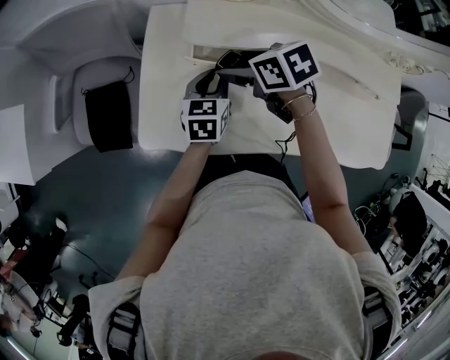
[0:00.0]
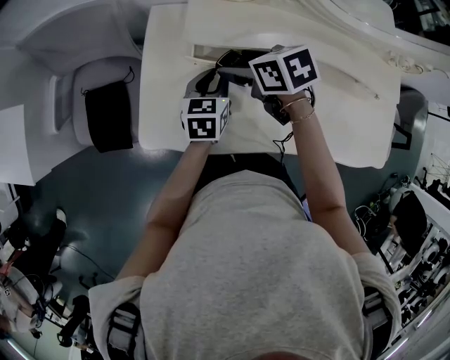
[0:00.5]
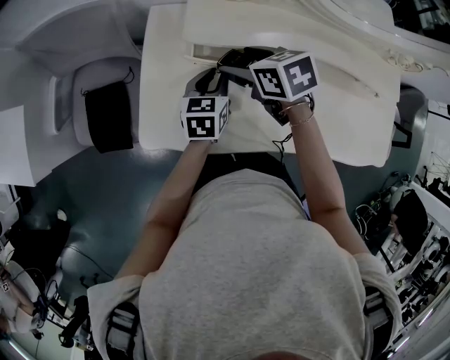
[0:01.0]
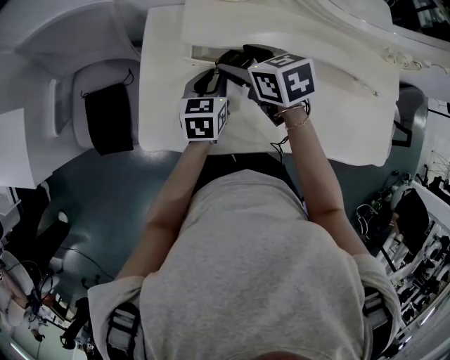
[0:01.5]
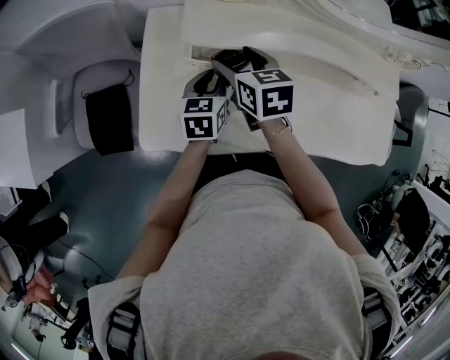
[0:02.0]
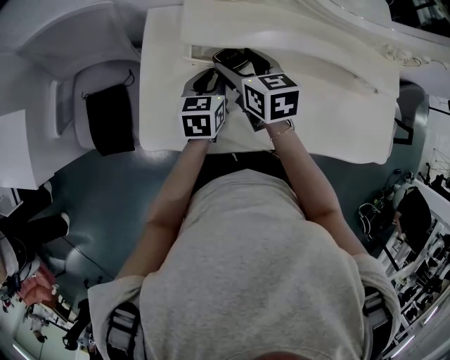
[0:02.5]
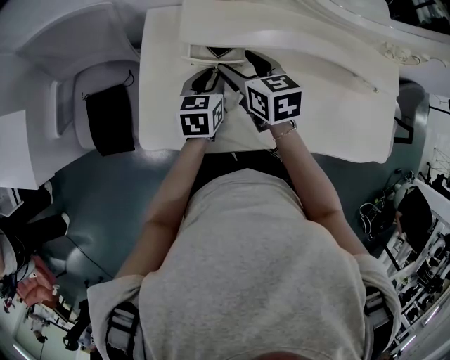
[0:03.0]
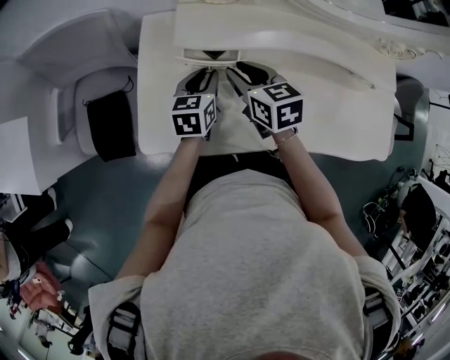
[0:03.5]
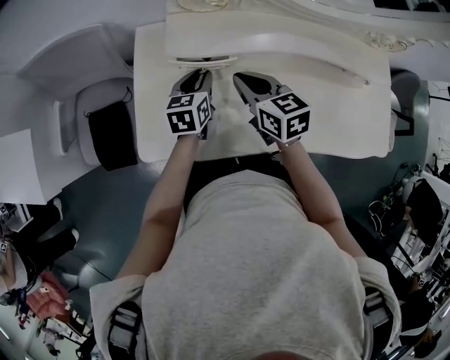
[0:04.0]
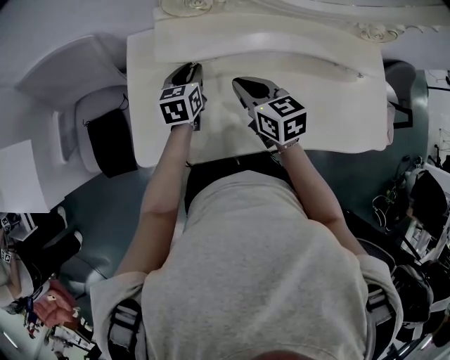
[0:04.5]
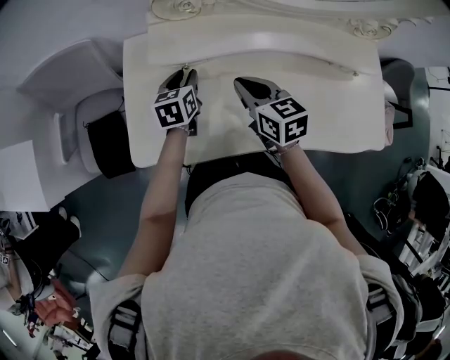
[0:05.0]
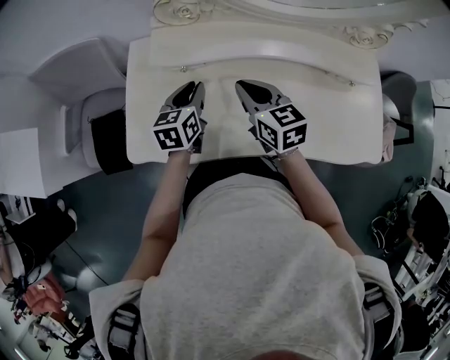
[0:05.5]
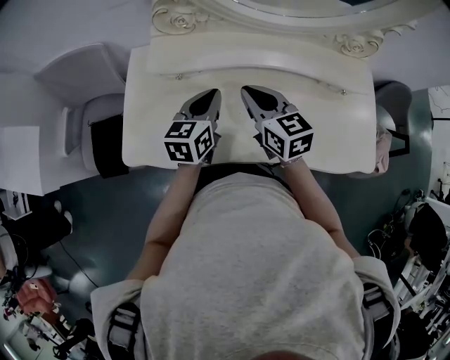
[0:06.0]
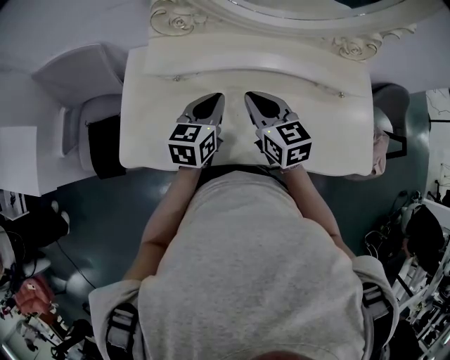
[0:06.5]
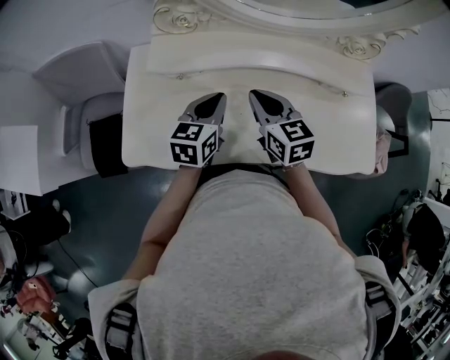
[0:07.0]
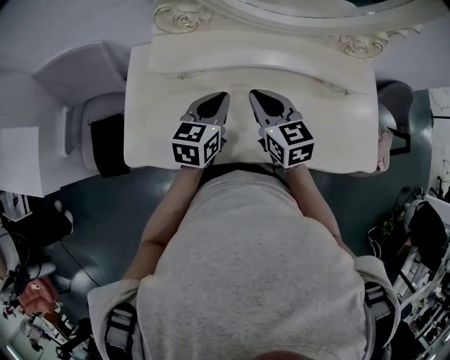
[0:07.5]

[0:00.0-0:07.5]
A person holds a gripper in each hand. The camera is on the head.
0:00.0 to 0:02.0: The right gripper rotates about 30 degrees.
0:02.0 to 0:04.0: The right gripper heads to the right and backward, covering some 5 cm, and closes.
0:04.0 to 0:05.5: The right gripper goes some 5 cm to the right. Meanwhile the left gripper is displaced upward by about 5 cm.
0:05.5 to 0:07.5: The left gripper travels to the right by approximately 10 cm.

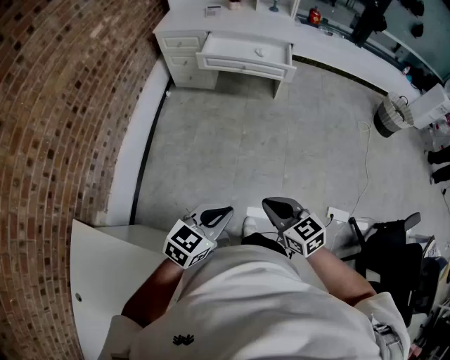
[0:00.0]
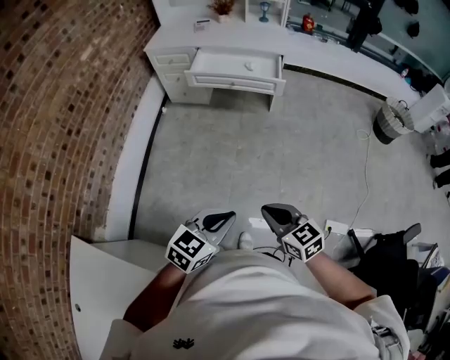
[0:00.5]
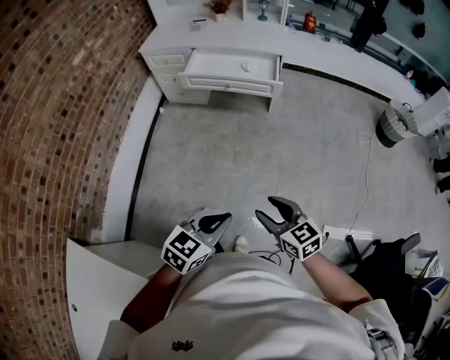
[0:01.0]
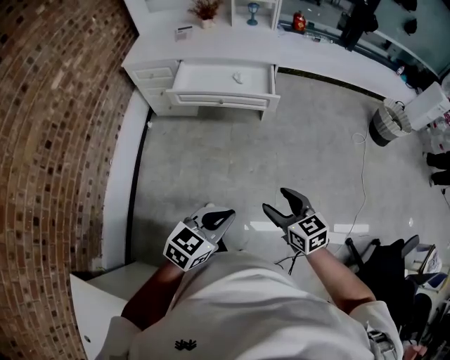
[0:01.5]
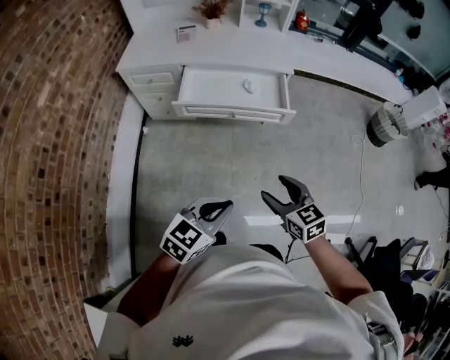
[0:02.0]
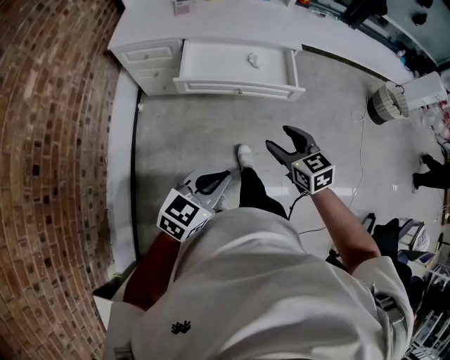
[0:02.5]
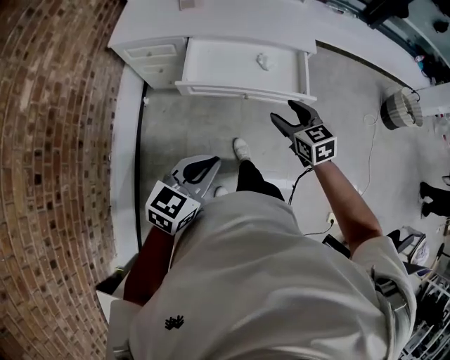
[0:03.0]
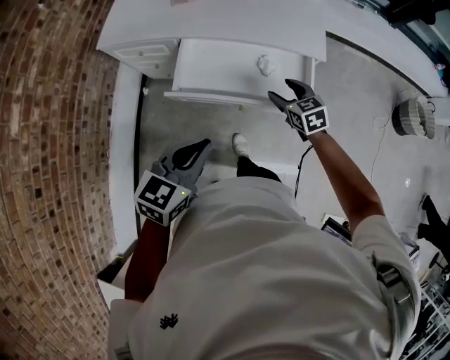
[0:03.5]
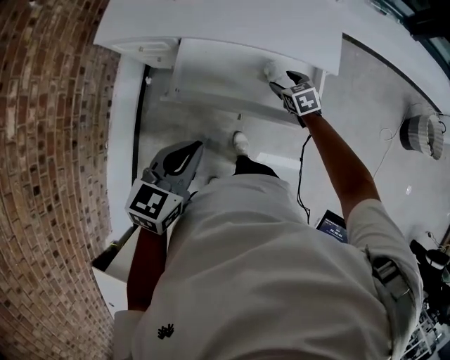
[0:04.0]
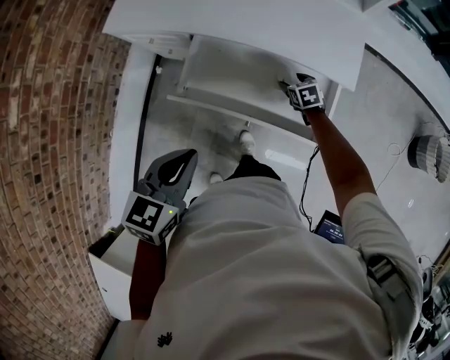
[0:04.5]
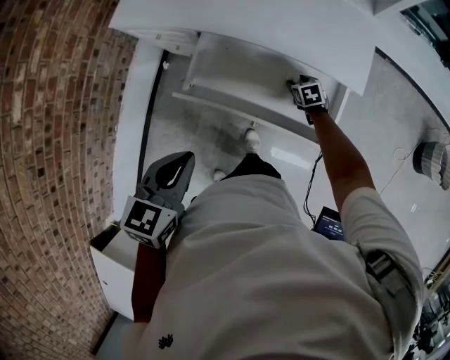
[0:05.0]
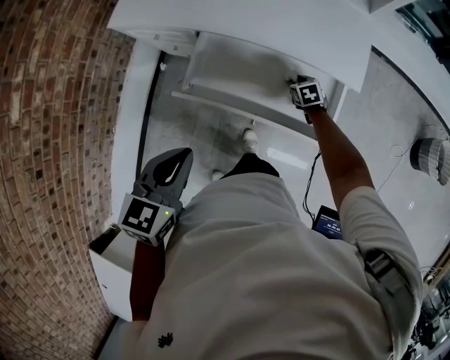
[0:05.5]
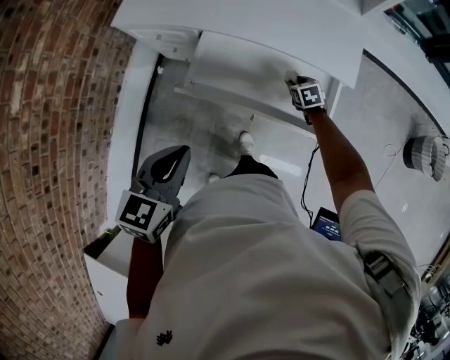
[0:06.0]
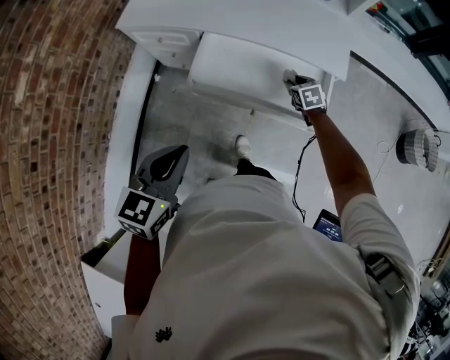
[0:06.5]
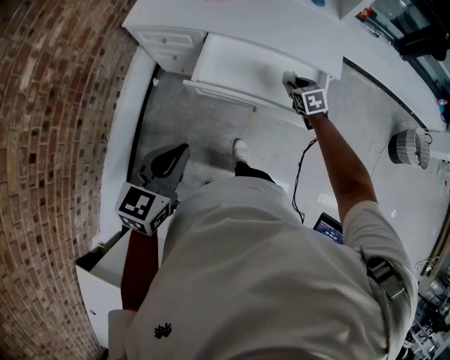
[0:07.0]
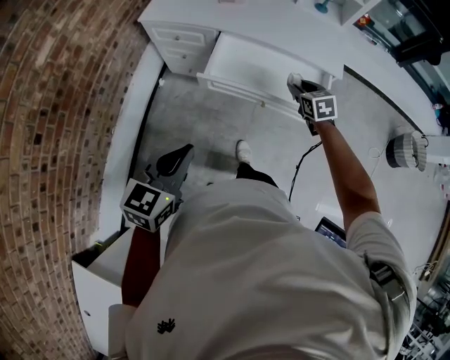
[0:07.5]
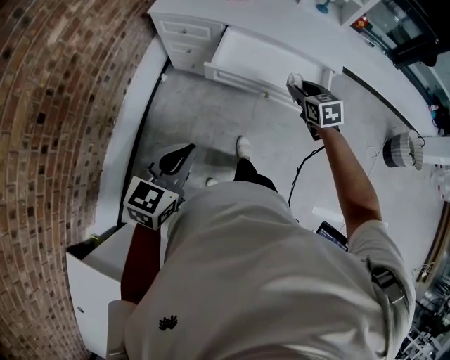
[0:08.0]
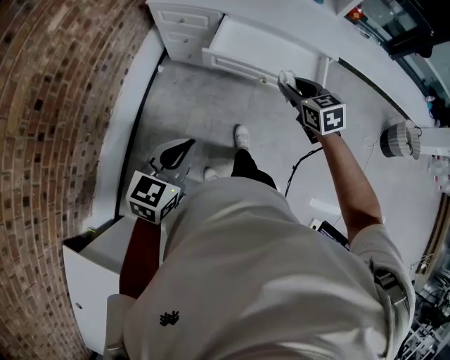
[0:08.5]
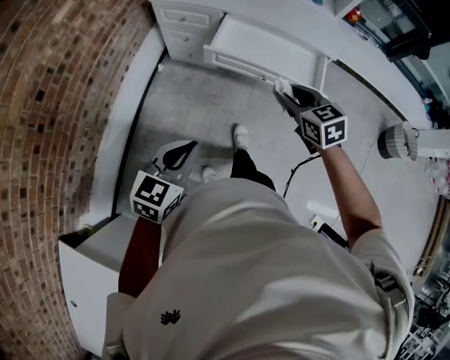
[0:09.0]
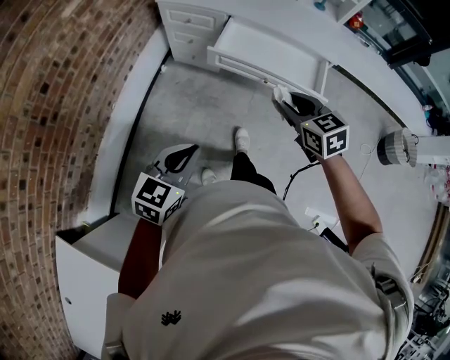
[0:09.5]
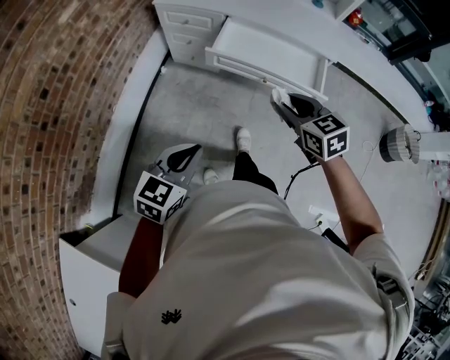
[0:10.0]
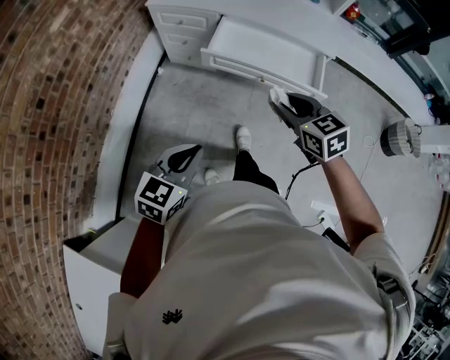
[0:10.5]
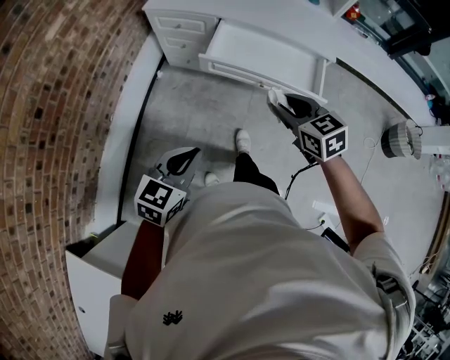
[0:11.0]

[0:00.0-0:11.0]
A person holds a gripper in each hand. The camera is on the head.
0:00.0 to 0:02.0: The two grippers go about 40 cm forward. The right gripper opens up.
0:02.0 to 0:03.5: Both grippers move forward, roughly 40 cm.
0:03.5 to 0:05.5: The right gripper goes roughly 25 cm downward and forward, turns by some 20 degrees, and closes up, while the left gripper goes about 5 cm forward.
0:05.5 to 0:07.5: The right gripper is displaced upward and backward by approximately 30 cm. The left gripper heads backward and to the left, covering approximately 20 cm.
0:07.5 to 0:09.0: The right gripper goes some 25 cm backward, upward and to the left; the left gripper heads backward, covering approximately 15 cm.
0:09.0 to 0:11.0: The grippers move only a little.

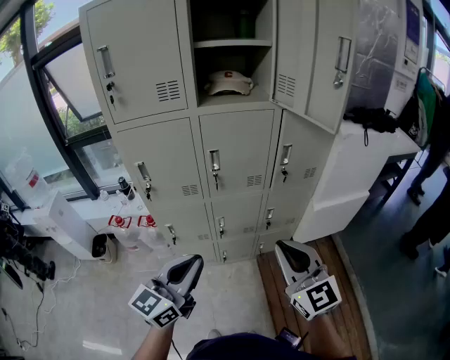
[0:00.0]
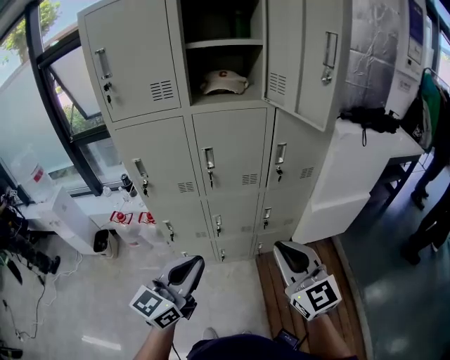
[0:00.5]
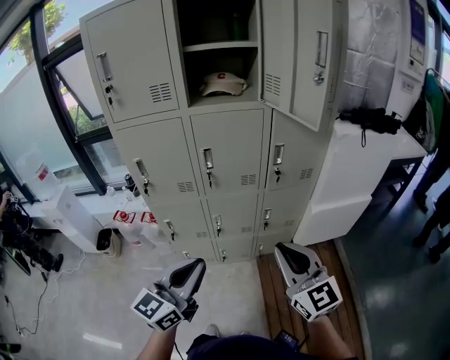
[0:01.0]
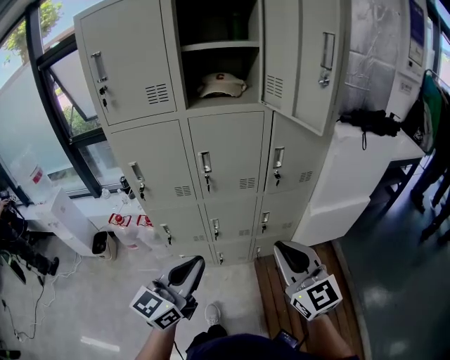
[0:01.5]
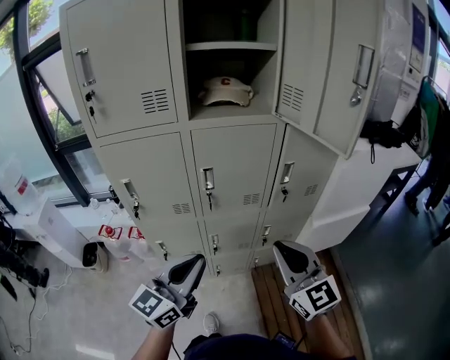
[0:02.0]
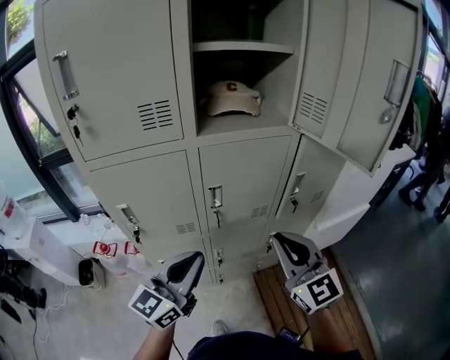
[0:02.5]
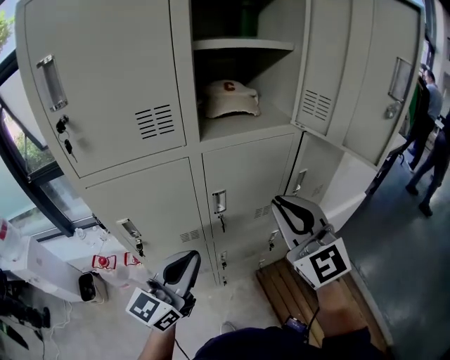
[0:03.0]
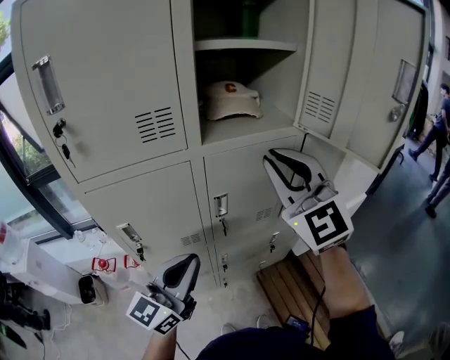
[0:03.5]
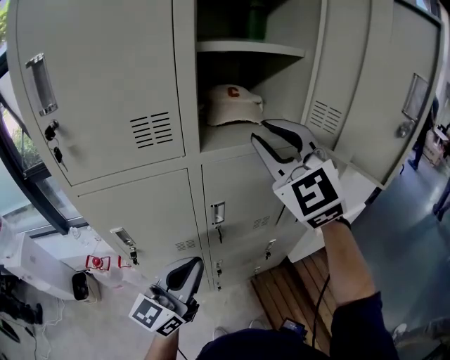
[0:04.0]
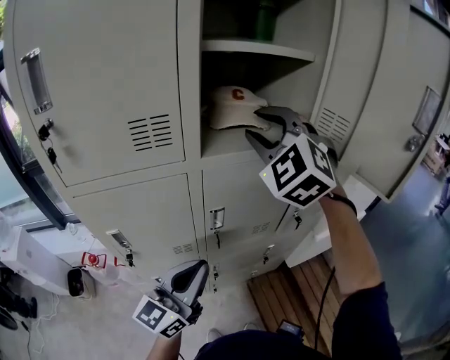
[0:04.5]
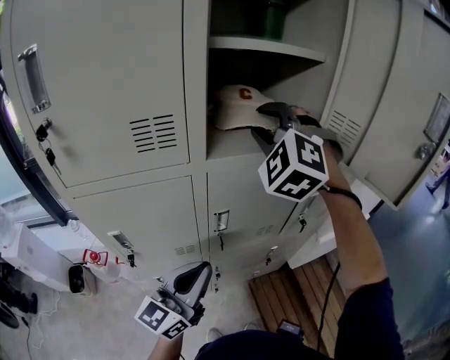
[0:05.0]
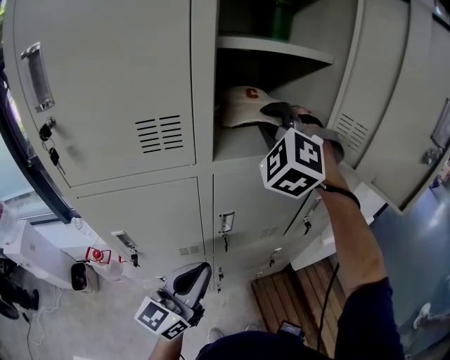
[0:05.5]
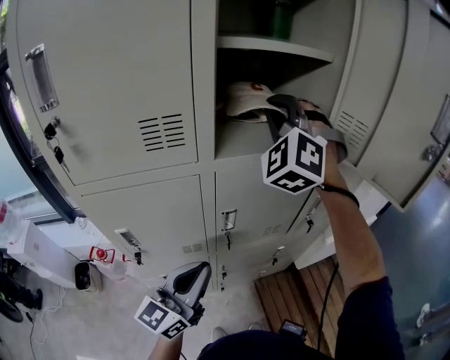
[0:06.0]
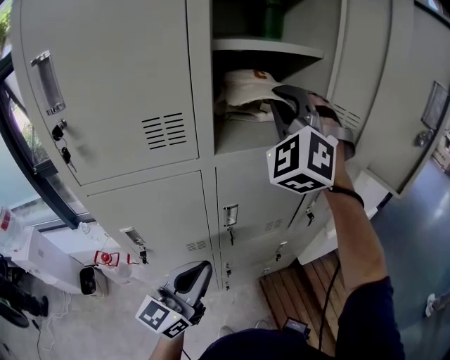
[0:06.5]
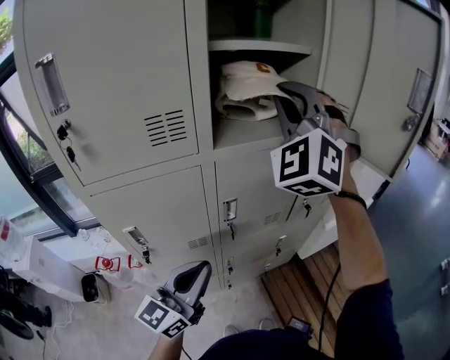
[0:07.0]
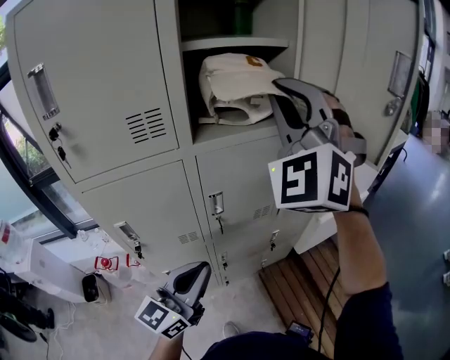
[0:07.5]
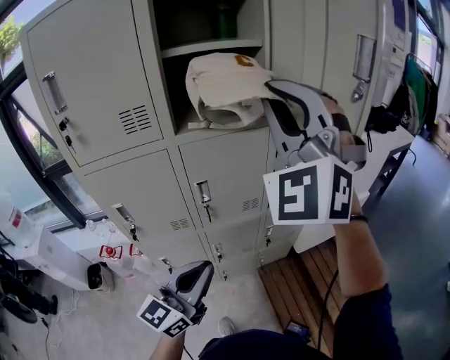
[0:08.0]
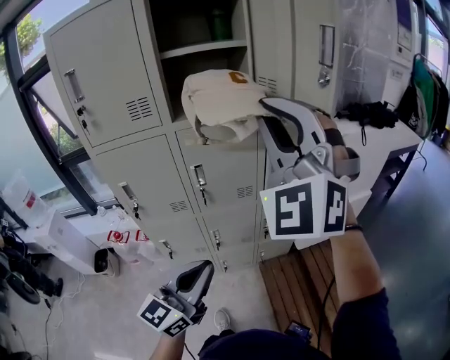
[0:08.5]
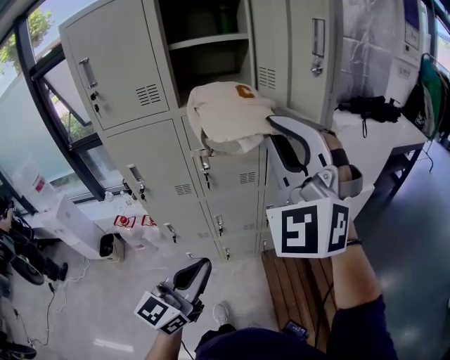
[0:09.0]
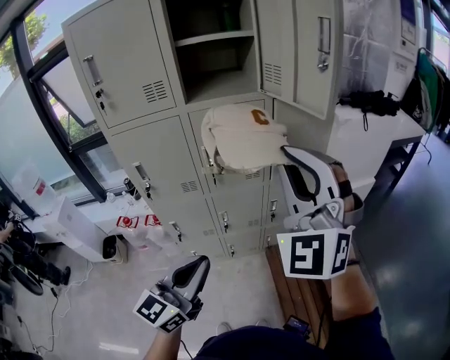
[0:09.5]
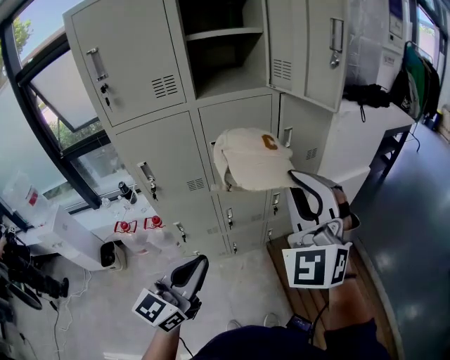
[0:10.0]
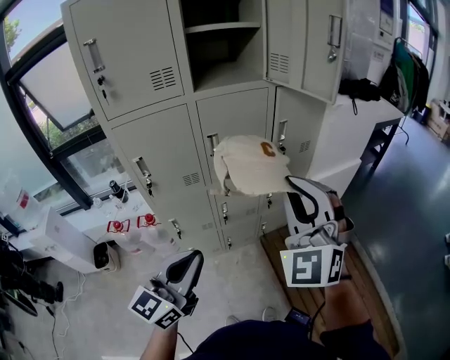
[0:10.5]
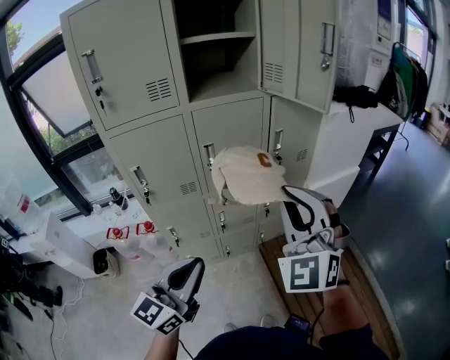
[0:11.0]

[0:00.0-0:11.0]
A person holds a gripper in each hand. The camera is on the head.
0:00.0 to 0:02.0: The grippers both shift forward by roughly 10 cm.
0:02.0 to 0:03.5: The right gripper heads forward, upward and to the left, covering approximately 30 cm, and changes its angle by some 30 degrees, while the left gripper heads forward and to the left, covering about 15 cm.
0:03.5 to 0:05.5: The right gripper travels forward by roughly 20 cm, and turns by about 40 degrees; the left gripper shifts by about 5 cm.
0:05.5 to 0:07.5: The left gripper moves backward, roughly 5 cm. Meanwhile the right gripper heads backward, upward and to the right, covering approximately 20 cm, and changes its angle by roughly 30 degrees.
0:07.5 to 0:09.0: The two grippers go some 25 cm backward and to the right.
0:09.0 to 0:11.0: The right gripper goes roughly 15 cm downward and backward. The left gripper moves to the left, about 10 cm.
